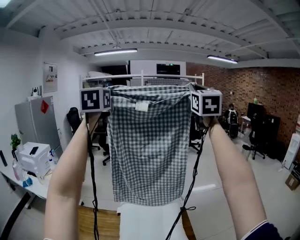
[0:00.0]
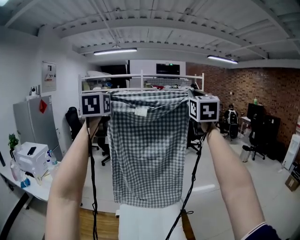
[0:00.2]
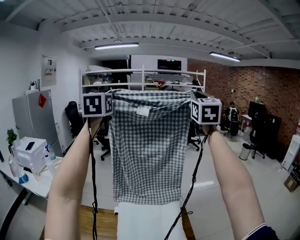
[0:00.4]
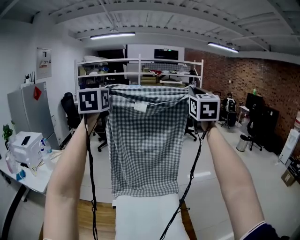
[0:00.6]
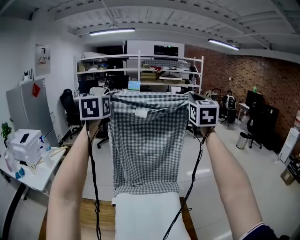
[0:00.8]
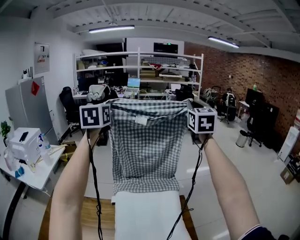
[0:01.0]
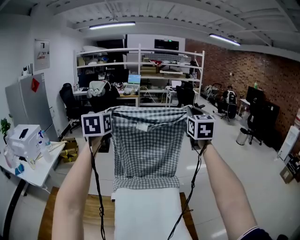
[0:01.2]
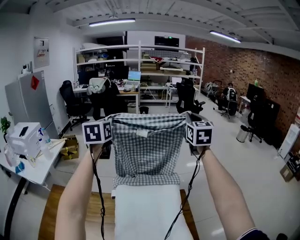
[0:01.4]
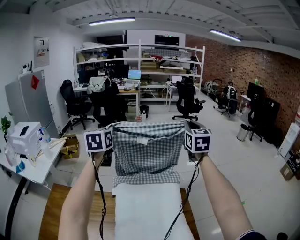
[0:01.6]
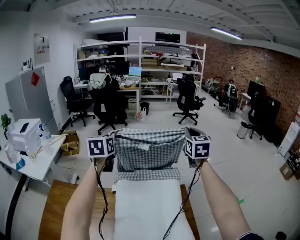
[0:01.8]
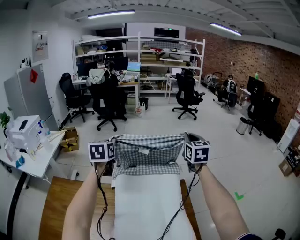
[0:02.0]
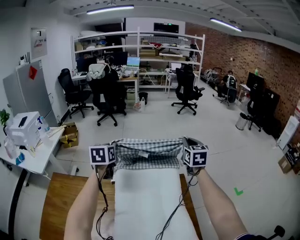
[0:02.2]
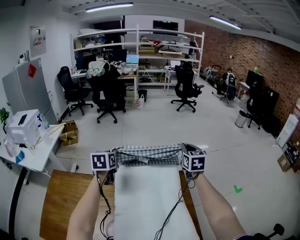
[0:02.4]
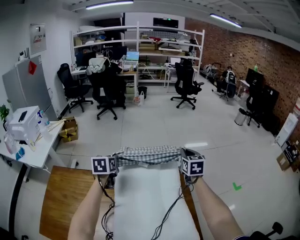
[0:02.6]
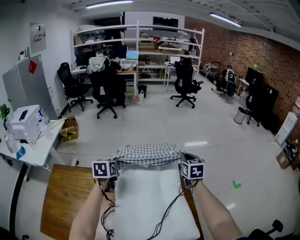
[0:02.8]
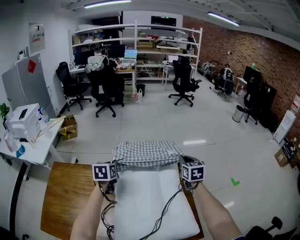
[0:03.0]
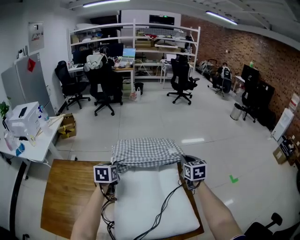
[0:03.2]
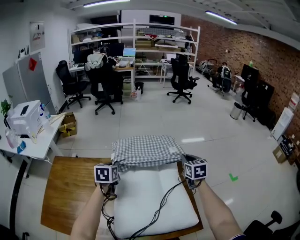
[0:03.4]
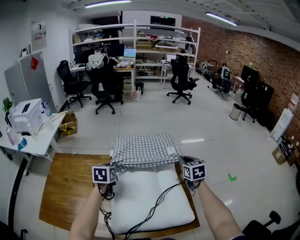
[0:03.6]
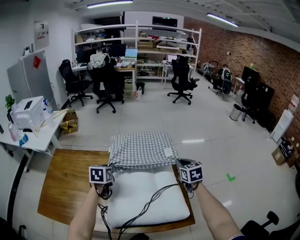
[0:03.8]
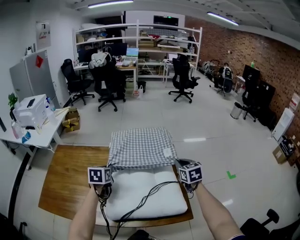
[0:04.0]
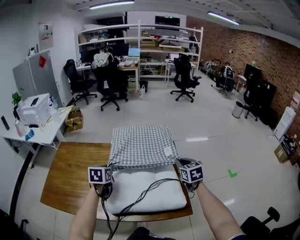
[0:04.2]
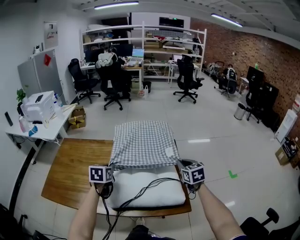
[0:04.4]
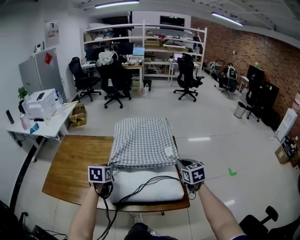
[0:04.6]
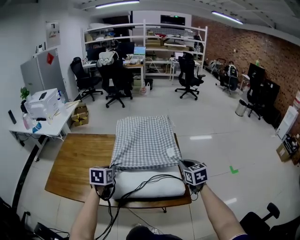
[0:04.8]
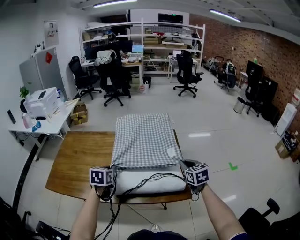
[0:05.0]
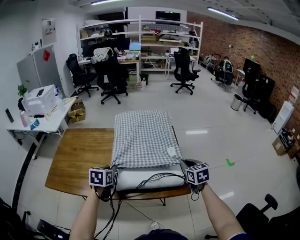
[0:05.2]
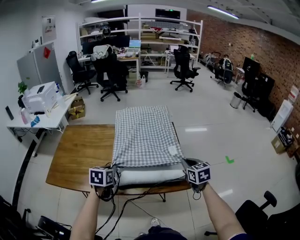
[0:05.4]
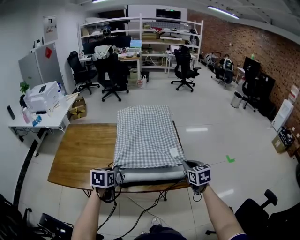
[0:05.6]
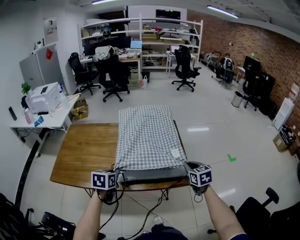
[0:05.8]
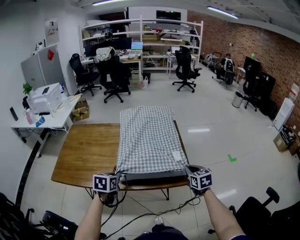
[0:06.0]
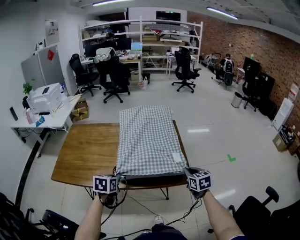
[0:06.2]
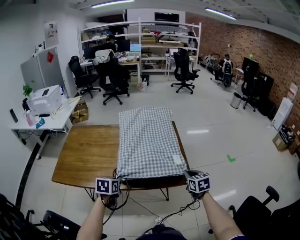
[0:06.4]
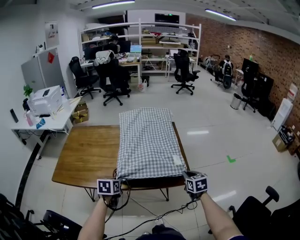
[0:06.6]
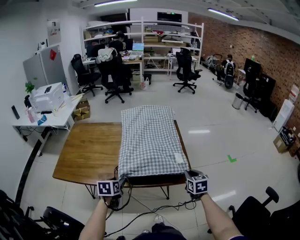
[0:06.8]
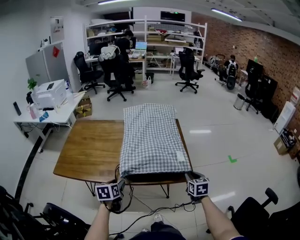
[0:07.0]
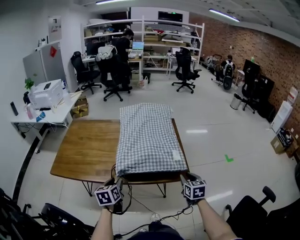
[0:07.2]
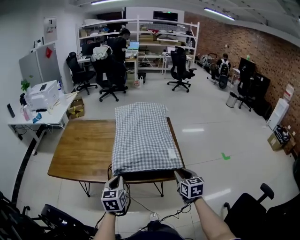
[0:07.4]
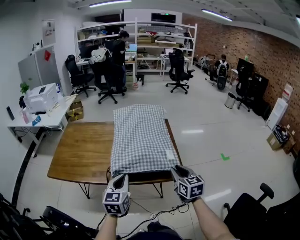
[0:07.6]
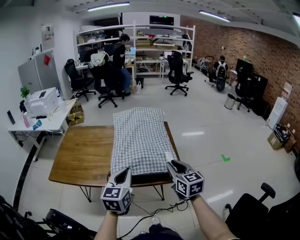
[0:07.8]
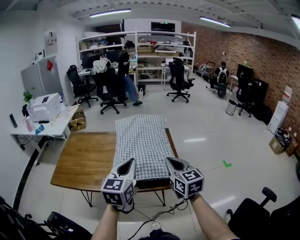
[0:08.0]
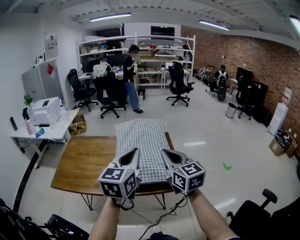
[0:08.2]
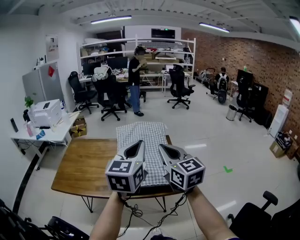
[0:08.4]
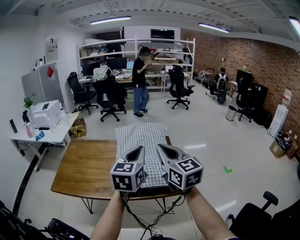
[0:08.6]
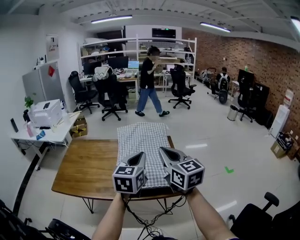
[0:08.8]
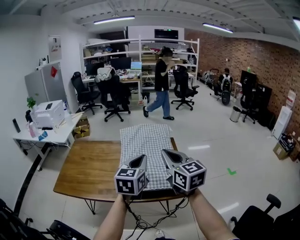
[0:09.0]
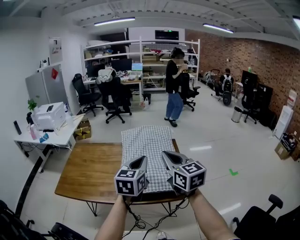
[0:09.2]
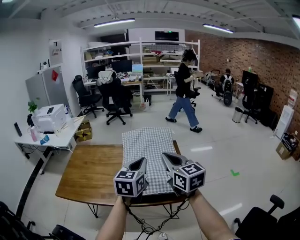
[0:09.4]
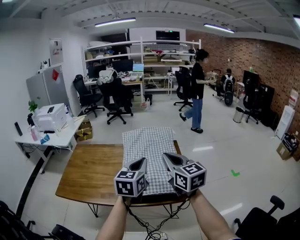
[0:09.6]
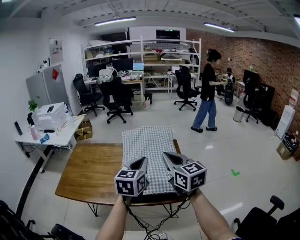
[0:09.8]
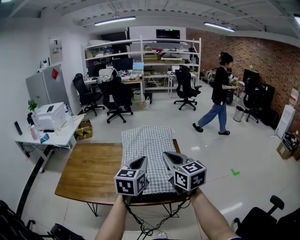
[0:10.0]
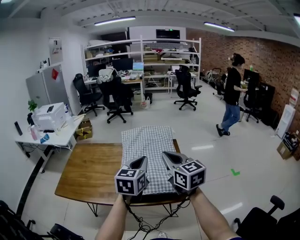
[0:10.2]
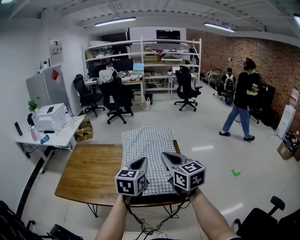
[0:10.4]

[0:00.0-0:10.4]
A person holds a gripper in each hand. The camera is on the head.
0:00.0 to 0:01.4: The grippers both shift downward by roughly 30 cm.
0:01.4 to 0:03.0: The two grippers go roughly 35 cm downward and backward. The right gripper rotates approximately 30 degrees; the left gripper turns by about 30 degrees.
0:03.0 to 0:04.4: The grippers both shift backward by some 20 cm.
0:04.4 to 0:06.0: The grippers both shift backward by approximately 20 cm.
0:06.0 to 0:07.4: Both grippers move backward, roughly 5 cm. The left gripper rotates about 20 degrees, and opens, then closes once more. Meanwhile the right gripper opens its fingers.
0:07.4 to 0:09.0: The left gripper shifts roughly 25 cm upward, to the right and forward; the right gripper travels upward and to the left by roughly 30 cm, changes its angle by about 30 degrees, and closes its fingers.
0:09.0 to 0:10.4: The grippers make only small movements.

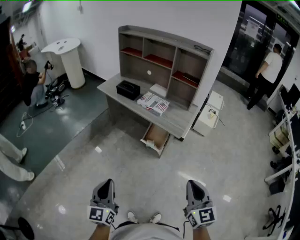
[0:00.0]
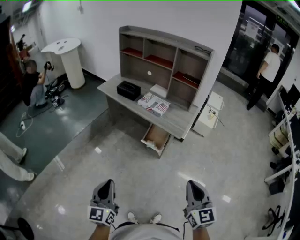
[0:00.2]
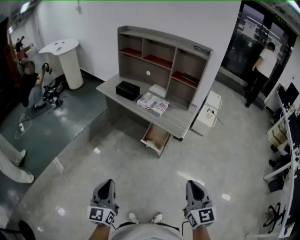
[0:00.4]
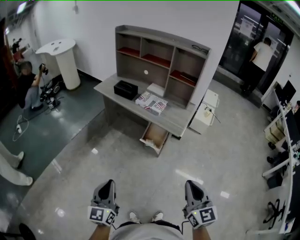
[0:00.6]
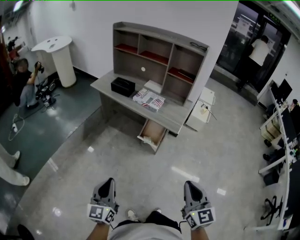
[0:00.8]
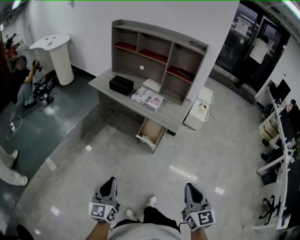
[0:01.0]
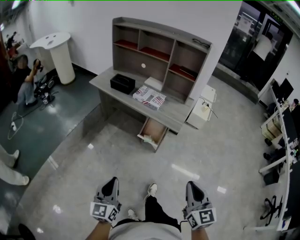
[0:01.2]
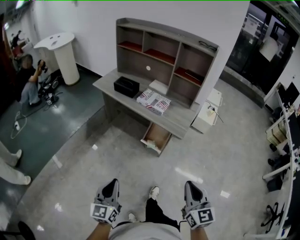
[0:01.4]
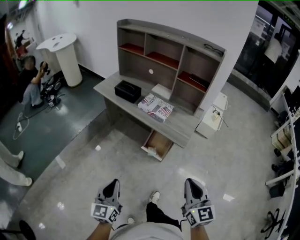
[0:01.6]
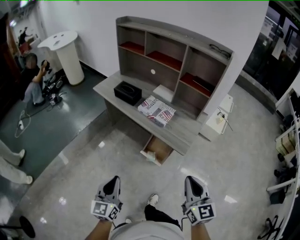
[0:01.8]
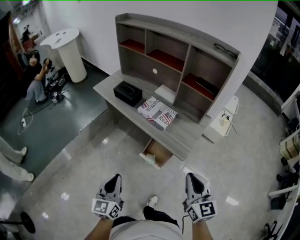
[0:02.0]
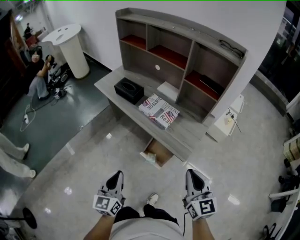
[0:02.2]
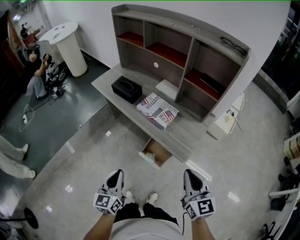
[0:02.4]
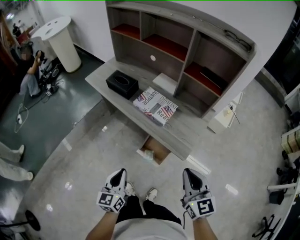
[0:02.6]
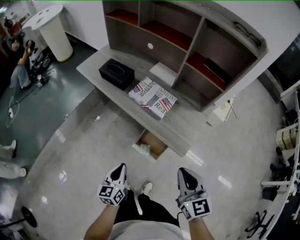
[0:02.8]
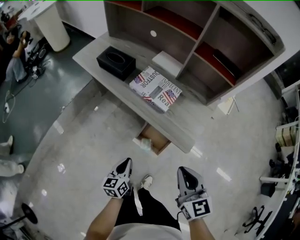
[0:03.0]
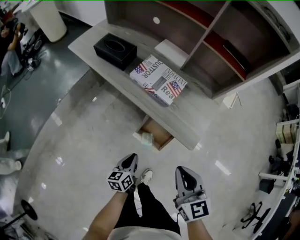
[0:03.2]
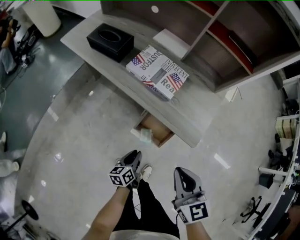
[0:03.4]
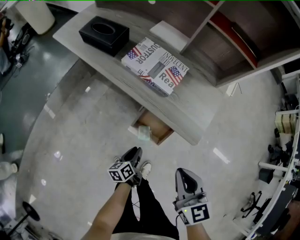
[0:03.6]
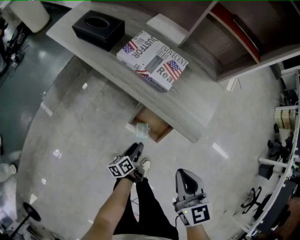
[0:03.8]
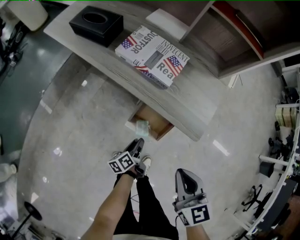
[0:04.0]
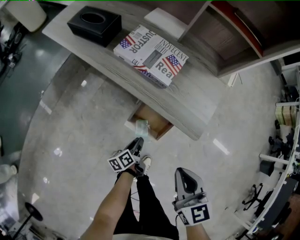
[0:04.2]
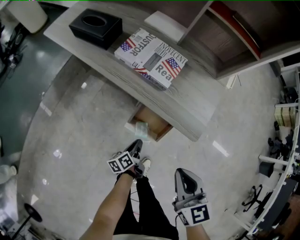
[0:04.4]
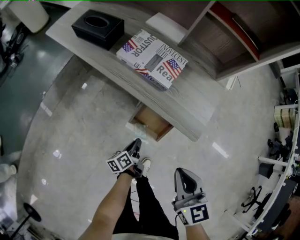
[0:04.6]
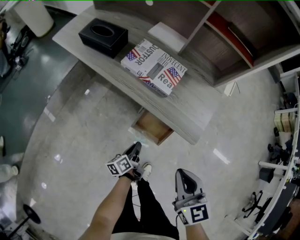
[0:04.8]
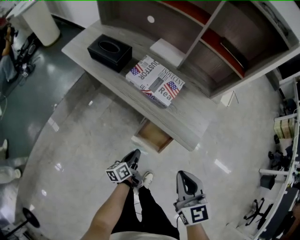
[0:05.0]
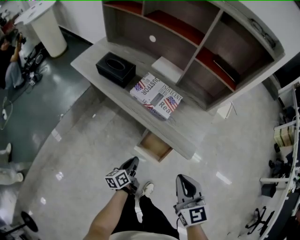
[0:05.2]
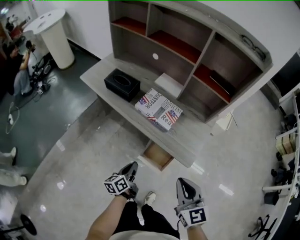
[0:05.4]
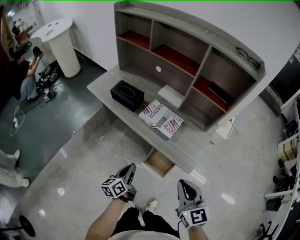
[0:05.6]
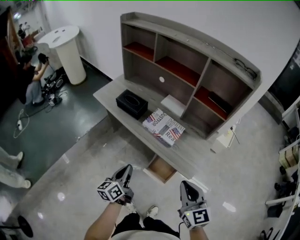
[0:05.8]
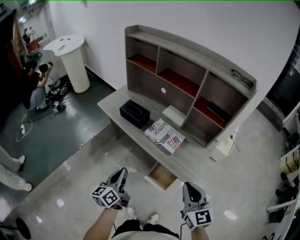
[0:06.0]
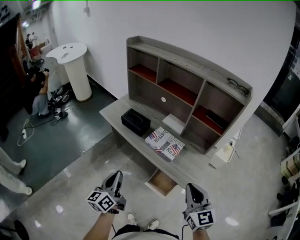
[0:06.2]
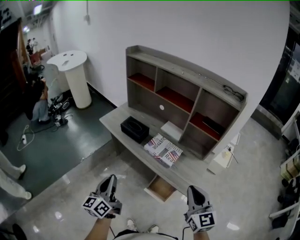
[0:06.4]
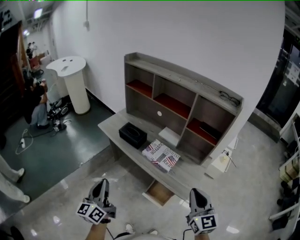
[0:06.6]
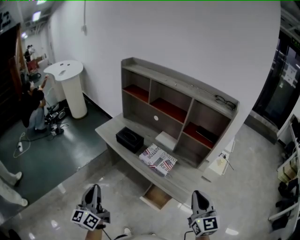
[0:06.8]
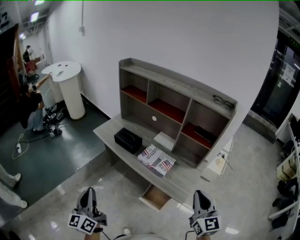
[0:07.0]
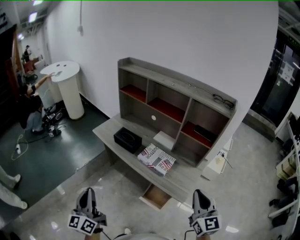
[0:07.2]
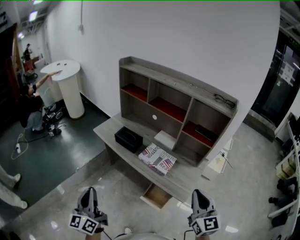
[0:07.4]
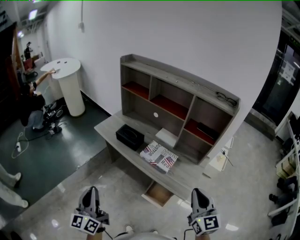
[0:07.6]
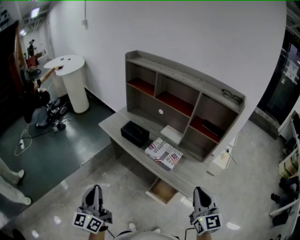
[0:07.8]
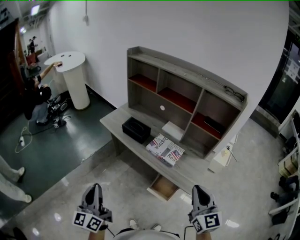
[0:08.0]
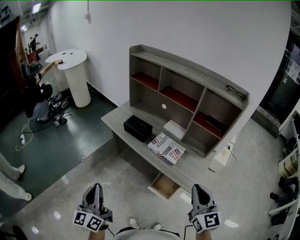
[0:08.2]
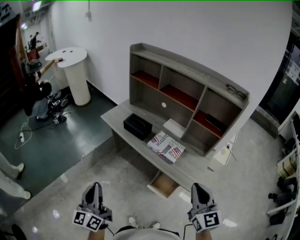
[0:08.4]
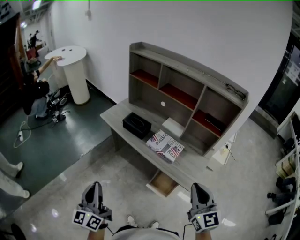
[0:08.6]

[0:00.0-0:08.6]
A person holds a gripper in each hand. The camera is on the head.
0:00.0 to 0:01.4: The right gripper changes place by about 5 cm, while the left gripper is displaced forward and downward by roughly 10 cm.
0:01.4 to 0:02.8: The left gripper goes about 35 cm forward, downward and to the right, and rotates some 20 degrees. Meanwhile the right gripper travels forward by about 30 cm.
0:02.8 to 0:04.4: The left gripper goes roughly 30 cm downward, rolls counterclockwise, seen from behind, by some 40 degrees, and opens and closes again. The right gripper moves downward, some 15 cm.
0:04.4 to 0:05.8: The right gripper is displaced upward by roughly 20 cm, while the left gripper is displaced upward and to the left by about 40 cm, and swivels approximately 40 degrees.
0:05.8 to 0:07.2: The right gripper travels upward and to the right by roughly 15 cm; the left gripper is displaced upward and to the left by approximately 25 cm, and turns by approximately 40 degrees.
0:07.2 to 0:08.6: The right gripper shifts roughly 10 cm to the left.

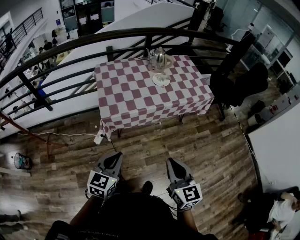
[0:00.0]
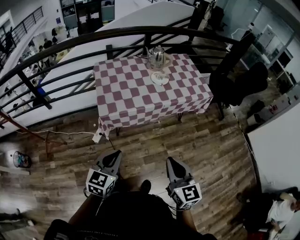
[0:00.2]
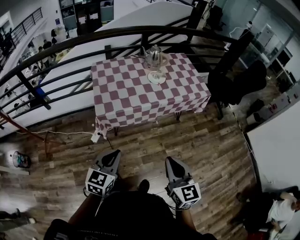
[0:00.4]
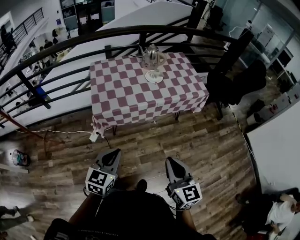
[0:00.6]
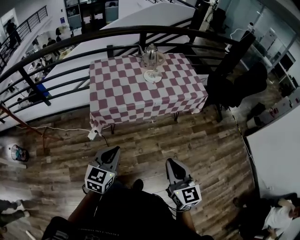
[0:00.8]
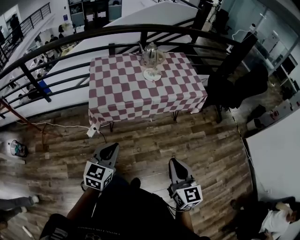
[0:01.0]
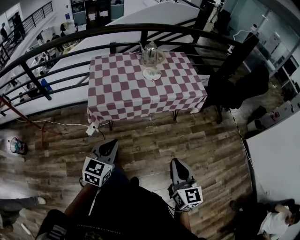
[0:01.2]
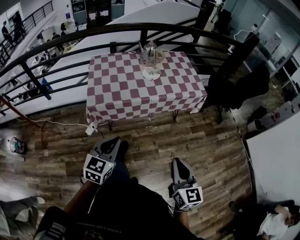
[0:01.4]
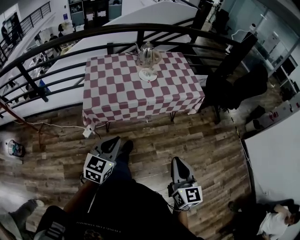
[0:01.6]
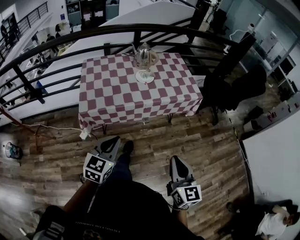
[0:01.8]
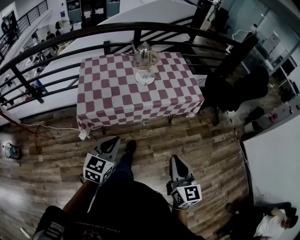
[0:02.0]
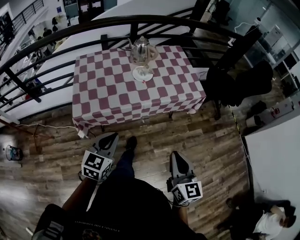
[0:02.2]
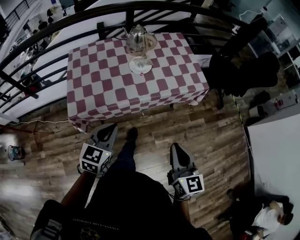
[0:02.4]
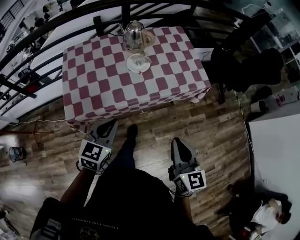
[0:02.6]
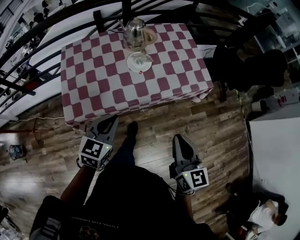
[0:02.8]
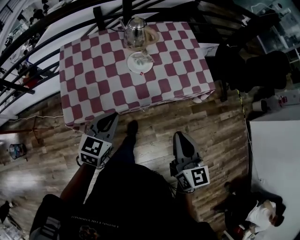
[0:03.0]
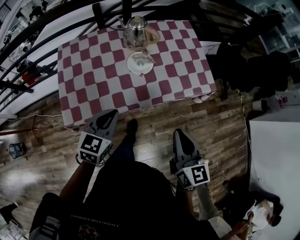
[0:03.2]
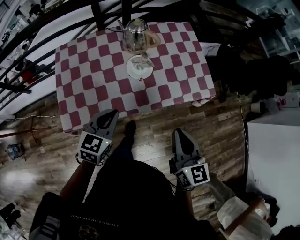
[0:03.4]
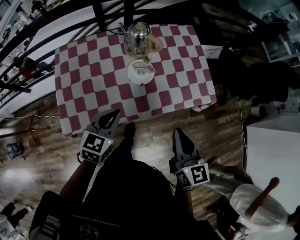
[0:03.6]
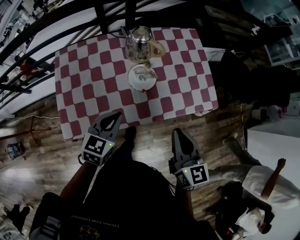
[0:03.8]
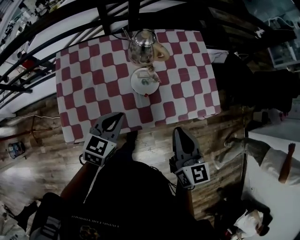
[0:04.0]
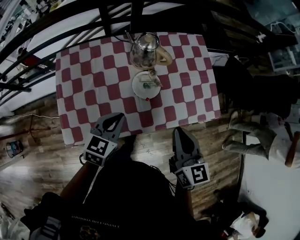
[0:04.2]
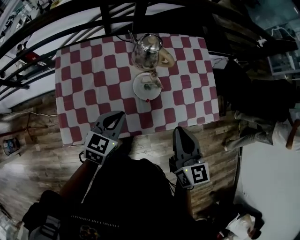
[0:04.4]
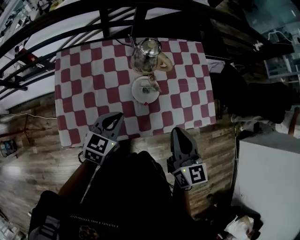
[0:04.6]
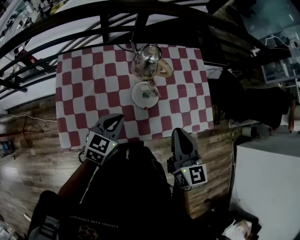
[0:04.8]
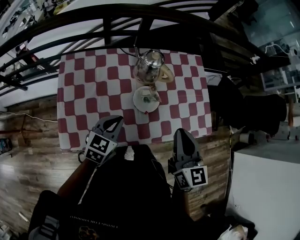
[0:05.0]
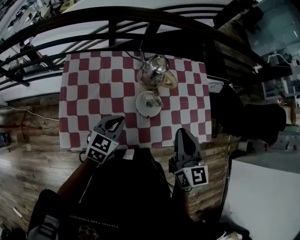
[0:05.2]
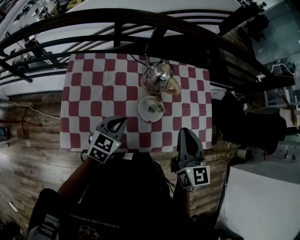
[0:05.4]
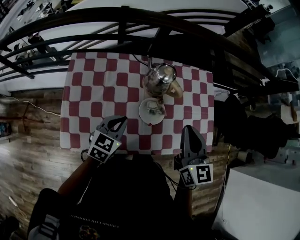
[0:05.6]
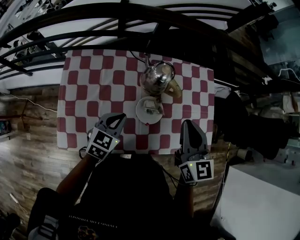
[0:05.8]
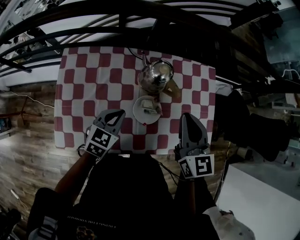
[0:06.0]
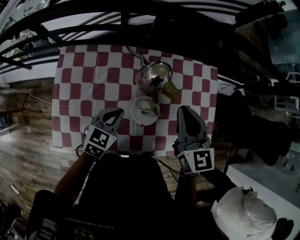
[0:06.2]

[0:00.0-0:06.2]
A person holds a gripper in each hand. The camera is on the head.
0:00.0 to 0:01.6: Both grippers travel together to the right, roughly 15 cm.
0:01.6 to 0:03.2: Both grippers move forward, some 35 cm.
0:03.2 to 0:04.6: The right gripper shifts roughly 20 cm forward and to the left. Meanwhile the left gripper shifts about 15 cm forward.
0:04.6 to 0:06.2: The left gripper shifts about 10 cm forward; the right gripper is displaced forward by approximately 20 cm.
